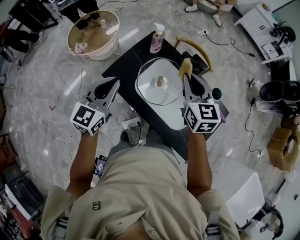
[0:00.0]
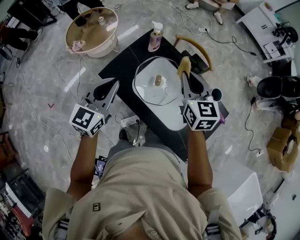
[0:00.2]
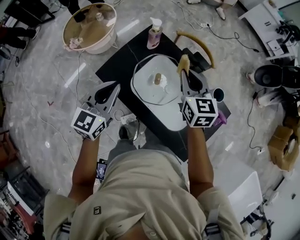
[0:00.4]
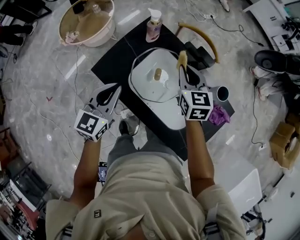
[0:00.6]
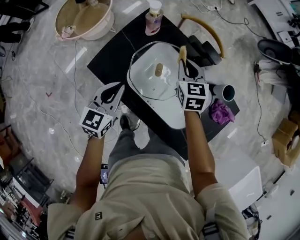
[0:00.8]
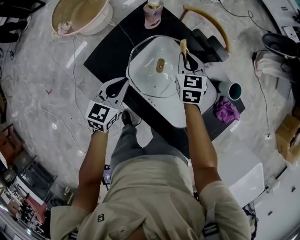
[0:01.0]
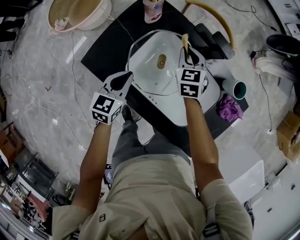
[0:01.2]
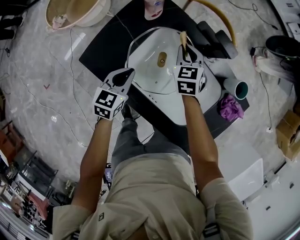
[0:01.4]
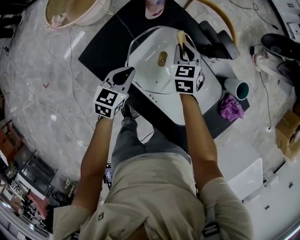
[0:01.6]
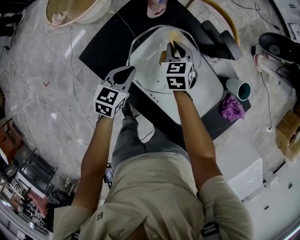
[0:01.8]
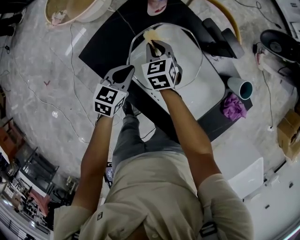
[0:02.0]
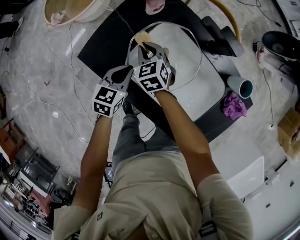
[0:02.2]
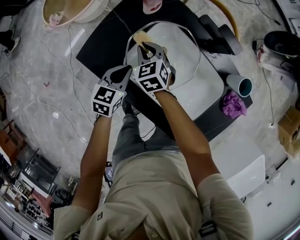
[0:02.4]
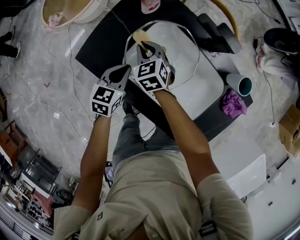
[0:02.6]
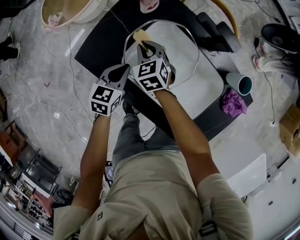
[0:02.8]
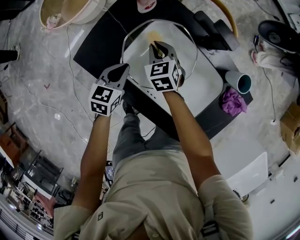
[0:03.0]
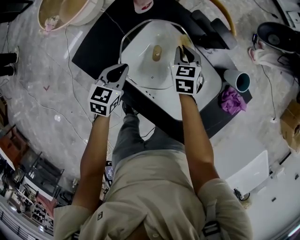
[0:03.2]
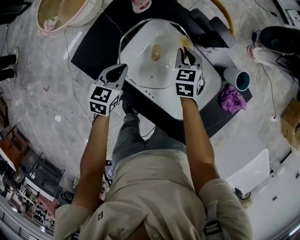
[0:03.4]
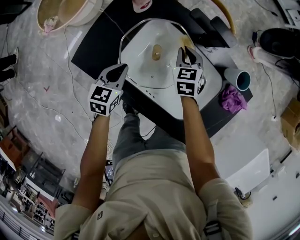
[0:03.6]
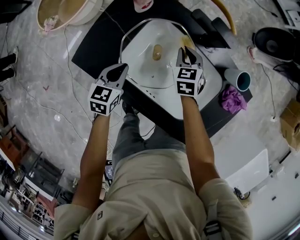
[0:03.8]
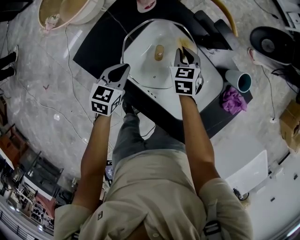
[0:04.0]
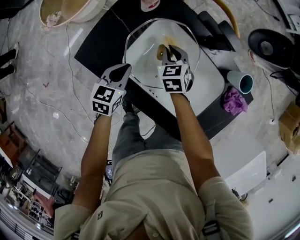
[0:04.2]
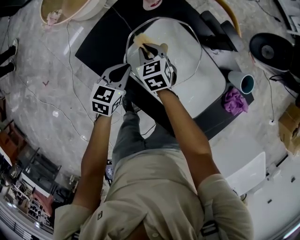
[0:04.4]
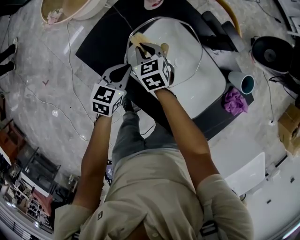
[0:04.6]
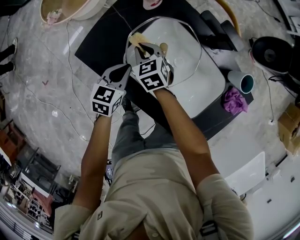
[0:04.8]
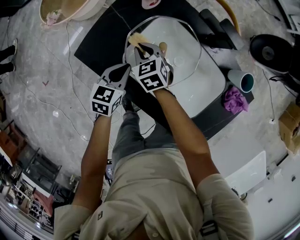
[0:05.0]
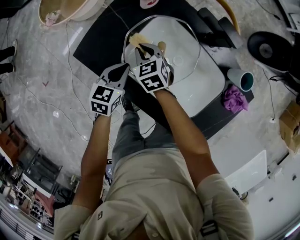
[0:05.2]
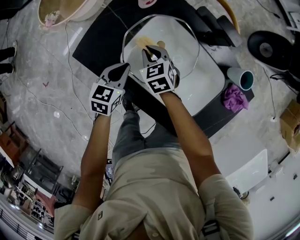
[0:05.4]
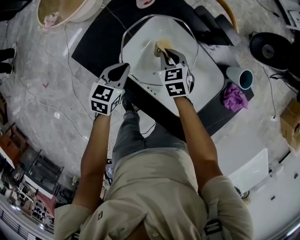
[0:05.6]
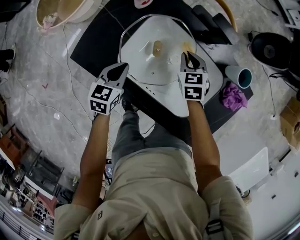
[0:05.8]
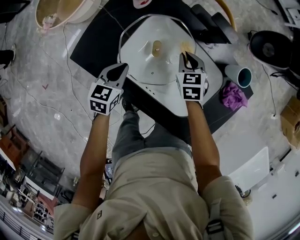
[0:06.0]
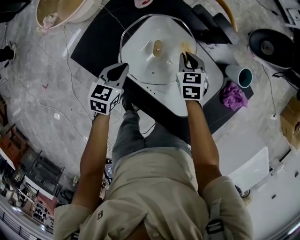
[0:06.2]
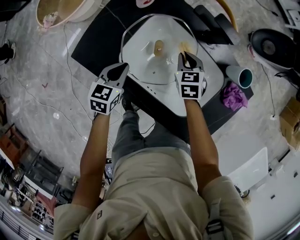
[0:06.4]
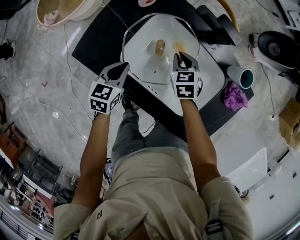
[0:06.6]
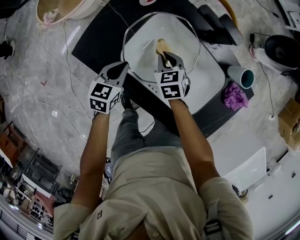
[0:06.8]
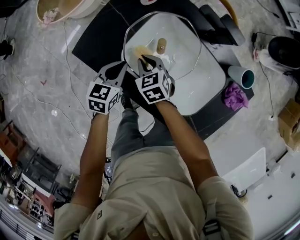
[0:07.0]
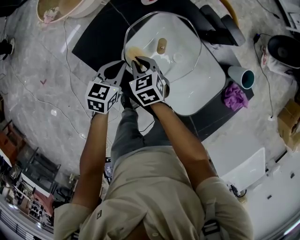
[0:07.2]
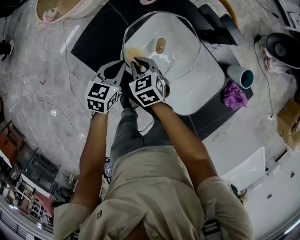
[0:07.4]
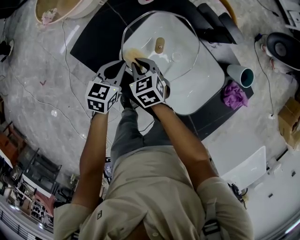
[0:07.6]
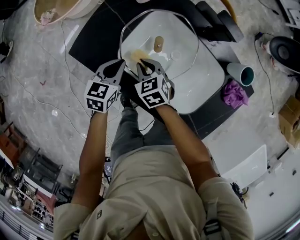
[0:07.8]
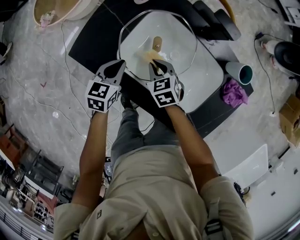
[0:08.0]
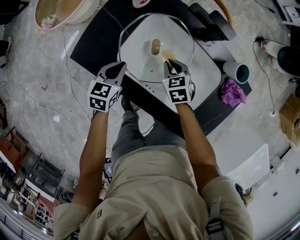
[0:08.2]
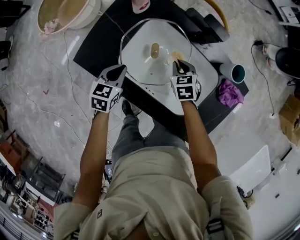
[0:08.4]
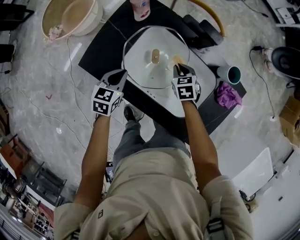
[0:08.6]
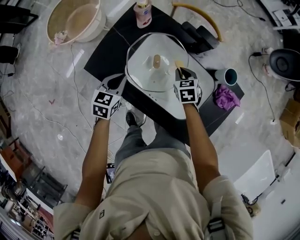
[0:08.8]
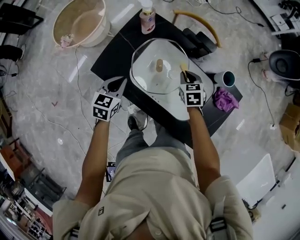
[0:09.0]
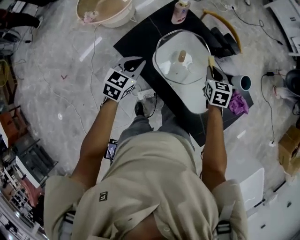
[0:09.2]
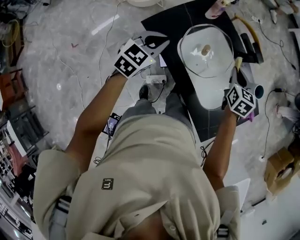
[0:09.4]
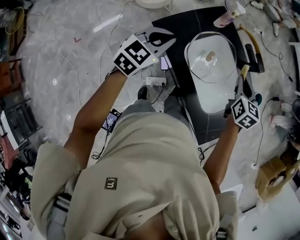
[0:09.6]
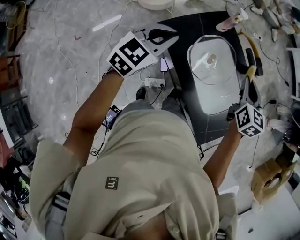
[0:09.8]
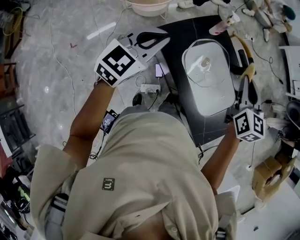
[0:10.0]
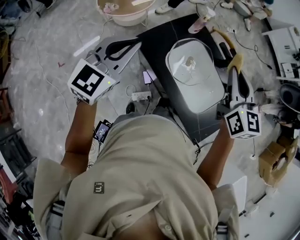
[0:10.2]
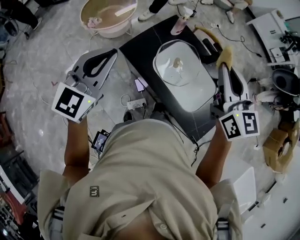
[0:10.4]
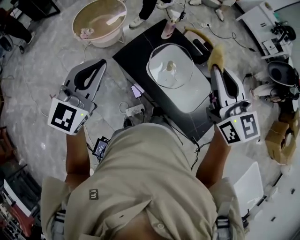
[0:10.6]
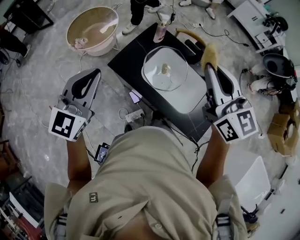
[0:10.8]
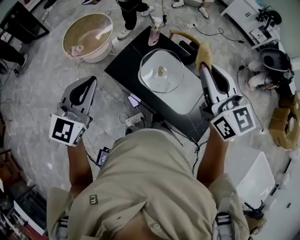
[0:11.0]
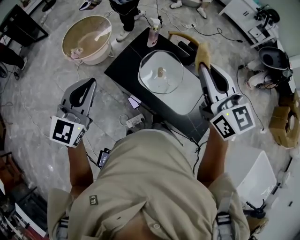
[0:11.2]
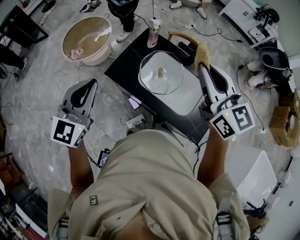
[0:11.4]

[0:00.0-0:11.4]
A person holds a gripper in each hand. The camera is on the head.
0:00.0 to 0:01.4: The right gripper is displaced downward and forward by approximately 35 cm, and swivels roughly 20 degrees. The left gripper goes about 30 cm downward, and rotates some 30 degrees.
0:01.4 to 0:02.8: The right gripper goes some 15 cm to the left.
0:02.8 to 0:04.2: The right gripper shifts approximately 10 cm to the right.
0:04.2 to 0:05.6: The right gripper travels to the left and back again, about 10 cm each way.
0:05.6 to 0:07.2: The right gripper goes some 15 cm to the left and backward.
0:07.2 to 0:08.6: The right gripper is displaced to the right by approximately 20 cm, and swivels about 20 degrees.
0:08.6 to 0:10.0: The left gripper travels upward and to the left by approximately 35 cm, and turns by approximately 30 degrees. Meanwhile the right gripper travels upward by roughly 40 cm, and tips its fingers upward by approximately 40 degrees.
0:10.0 to 0:11.4: The right gripper goes approximately 15 cm upward and backward. Meanwhile the left gripper heads upward, covering about 10 cm.

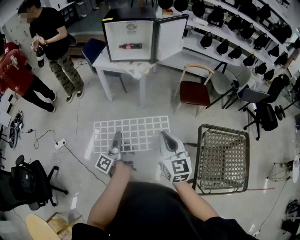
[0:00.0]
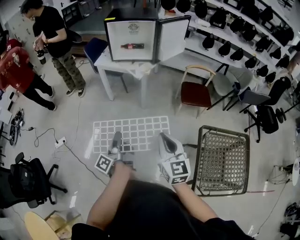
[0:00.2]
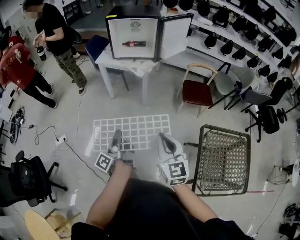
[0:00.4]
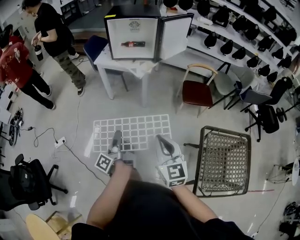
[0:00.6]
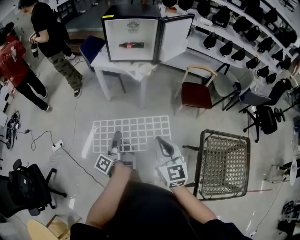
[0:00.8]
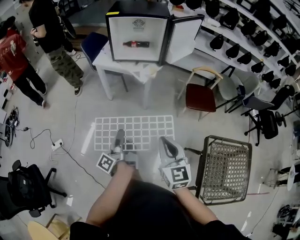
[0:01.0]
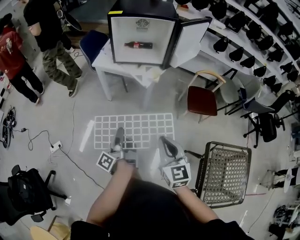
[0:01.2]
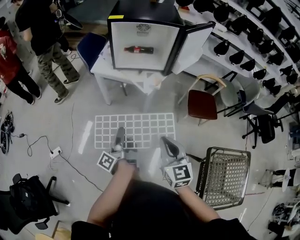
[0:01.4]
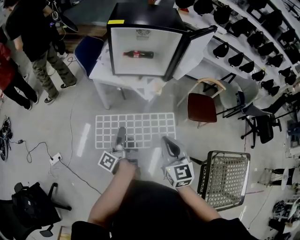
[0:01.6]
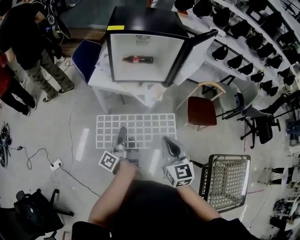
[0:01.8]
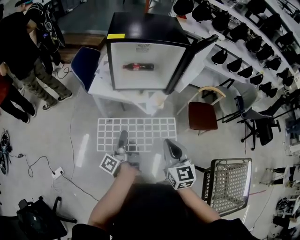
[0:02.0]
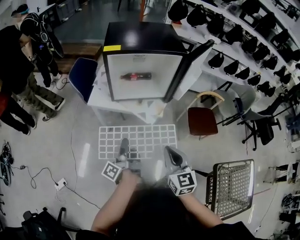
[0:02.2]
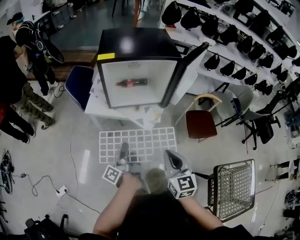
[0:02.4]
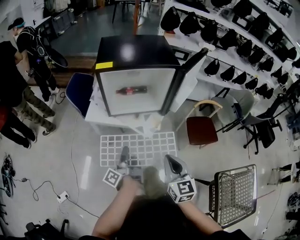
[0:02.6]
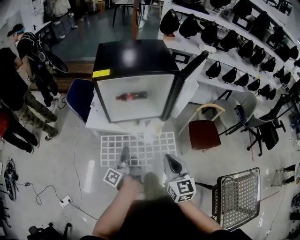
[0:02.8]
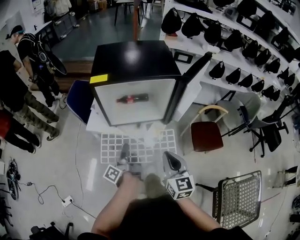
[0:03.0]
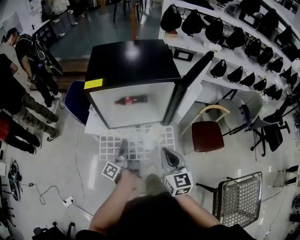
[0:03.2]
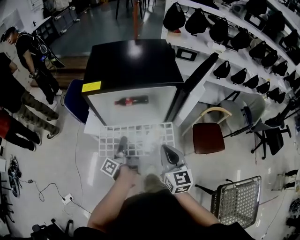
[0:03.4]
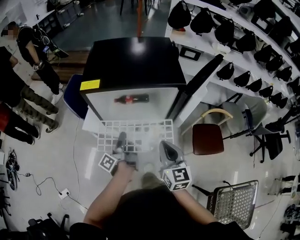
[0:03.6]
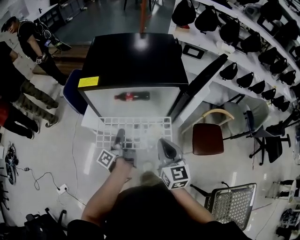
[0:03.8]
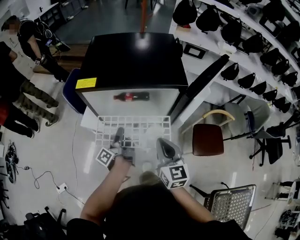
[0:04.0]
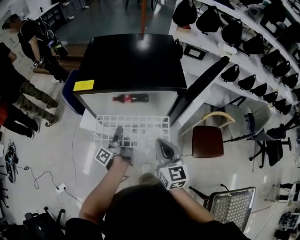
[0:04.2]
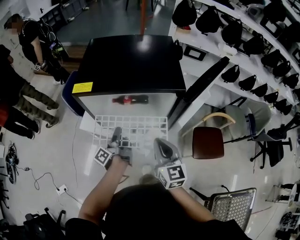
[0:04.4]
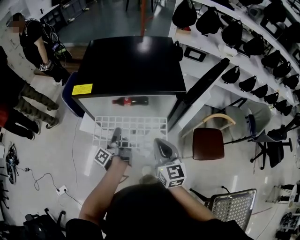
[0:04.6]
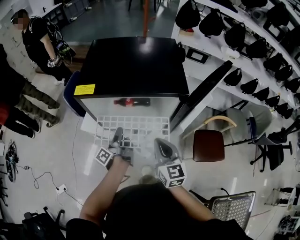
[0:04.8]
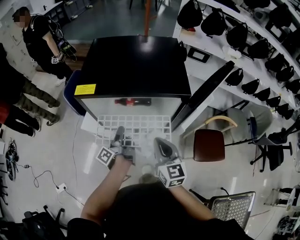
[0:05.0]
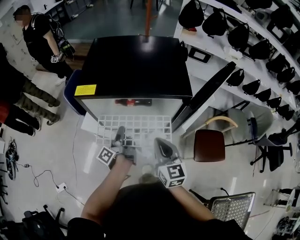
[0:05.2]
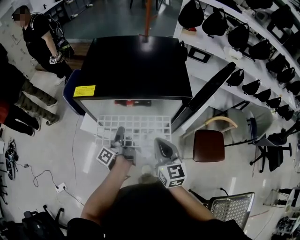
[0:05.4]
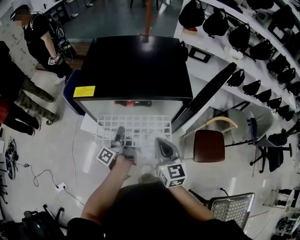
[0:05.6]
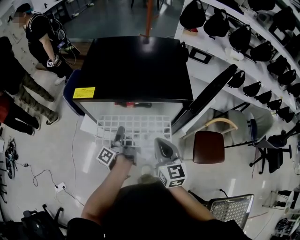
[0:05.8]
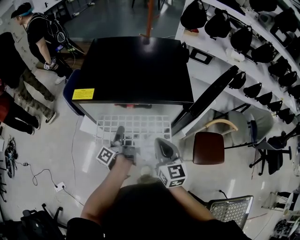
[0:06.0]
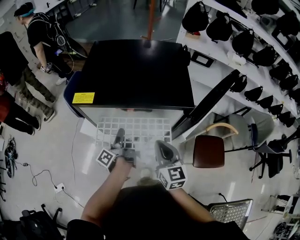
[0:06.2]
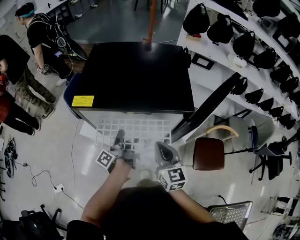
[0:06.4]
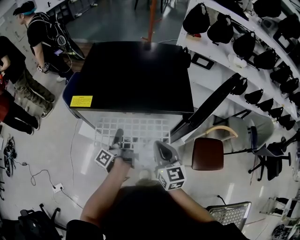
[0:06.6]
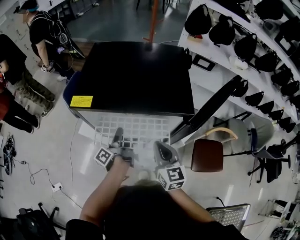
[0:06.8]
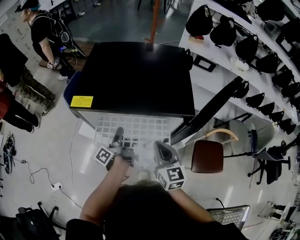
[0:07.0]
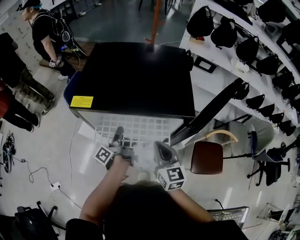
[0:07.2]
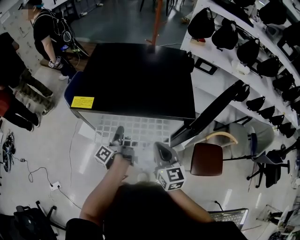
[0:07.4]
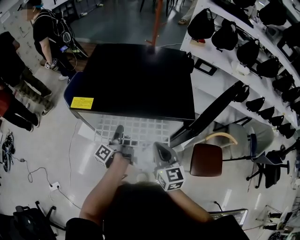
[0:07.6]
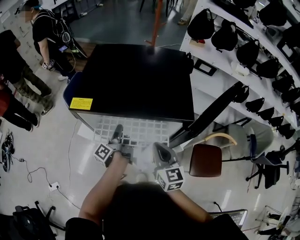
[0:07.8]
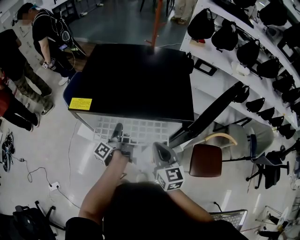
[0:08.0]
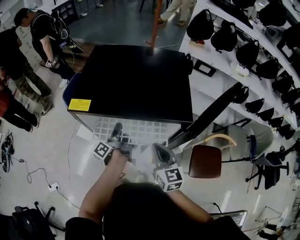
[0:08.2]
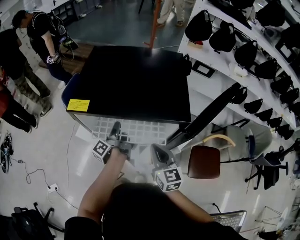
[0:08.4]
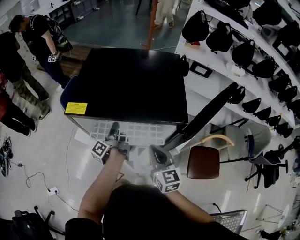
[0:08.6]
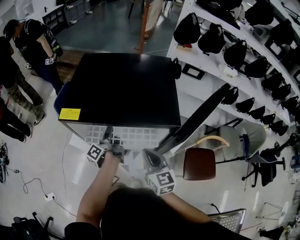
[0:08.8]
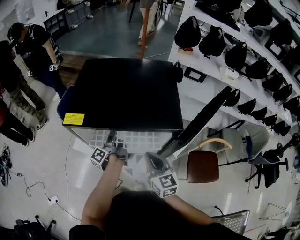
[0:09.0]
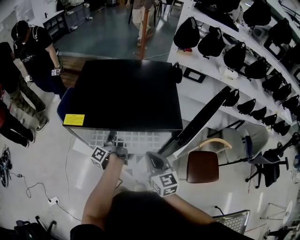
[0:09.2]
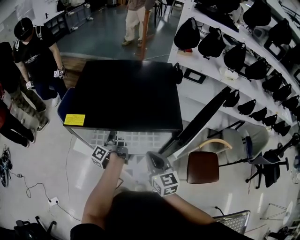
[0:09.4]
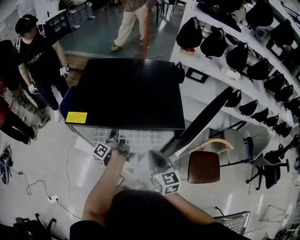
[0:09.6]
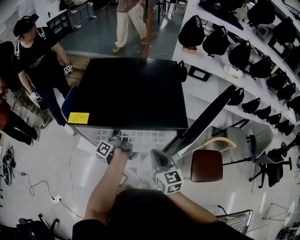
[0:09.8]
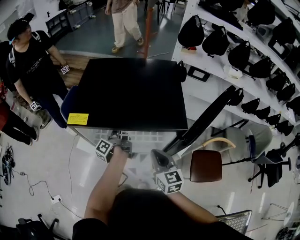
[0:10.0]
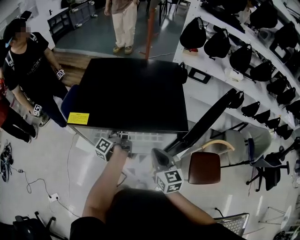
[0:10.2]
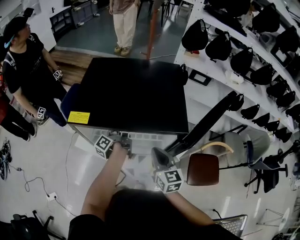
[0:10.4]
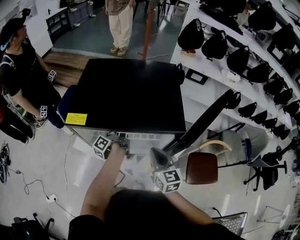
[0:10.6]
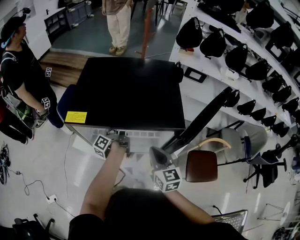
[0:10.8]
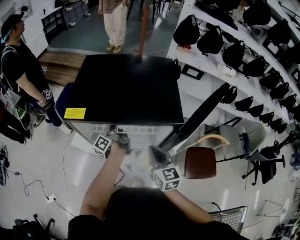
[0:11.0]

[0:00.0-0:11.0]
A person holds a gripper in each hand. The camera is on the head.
0:00.0 to 0:01.6: The right gripper moves some 40 cm.
0:01.6 to 0:03.2: The right gripper ends up some 30 cm from where it was.
0:03.2 to 0:04.8: The right gripper moves about 15 cm.
0:04.8 to 0:06.2: The right gripper shifts by about 5 cm.

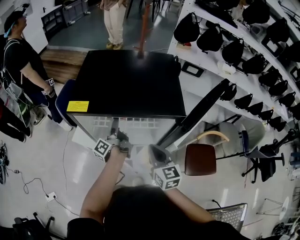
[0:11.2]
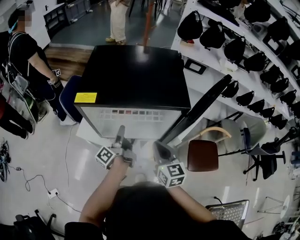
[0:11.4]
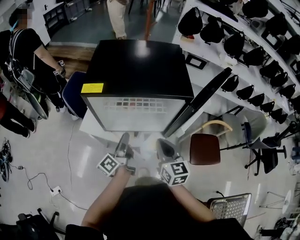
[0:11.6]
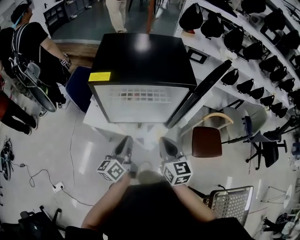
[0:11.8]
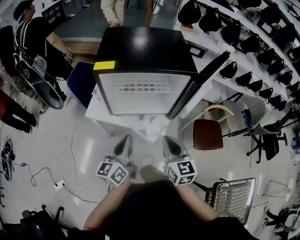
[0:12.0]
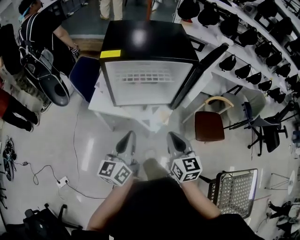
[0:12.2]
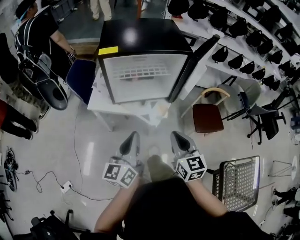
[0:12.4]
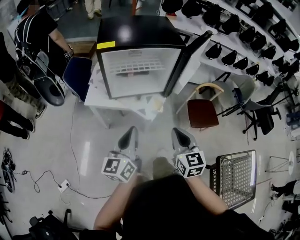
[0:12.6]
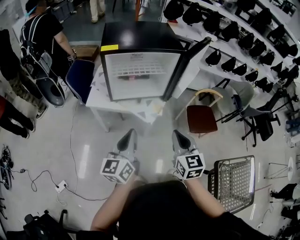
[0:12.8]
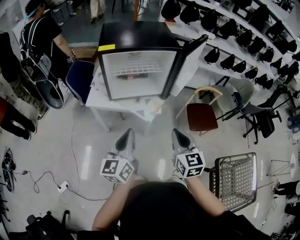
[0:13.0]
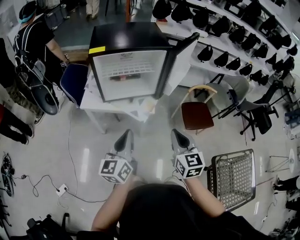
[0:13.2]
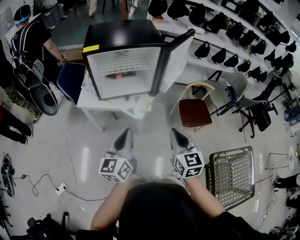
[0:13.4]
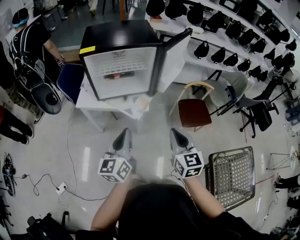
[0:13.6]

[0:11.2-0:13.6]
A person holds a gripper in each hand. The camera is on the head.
0:11.2 to 0:12.4: The right gripper ends up approximately 30 cm from where it was.
0:12.4 to 0:13.6: The right gripper ends up roughly 15 cm from where it was.
